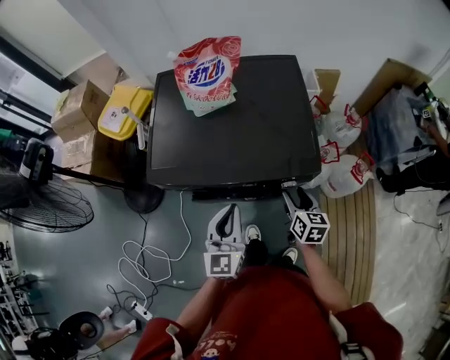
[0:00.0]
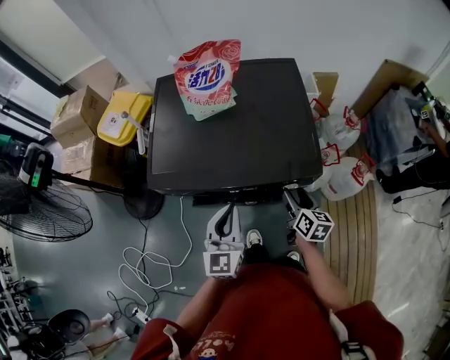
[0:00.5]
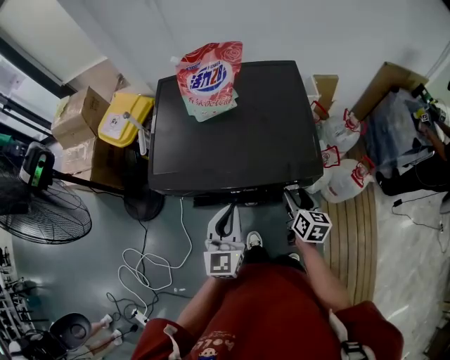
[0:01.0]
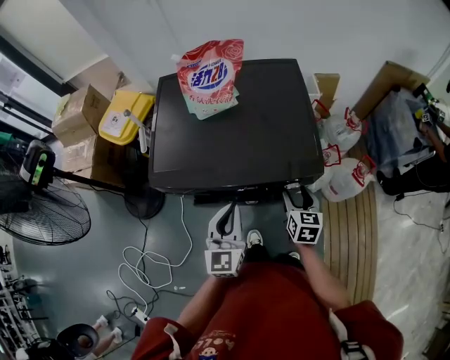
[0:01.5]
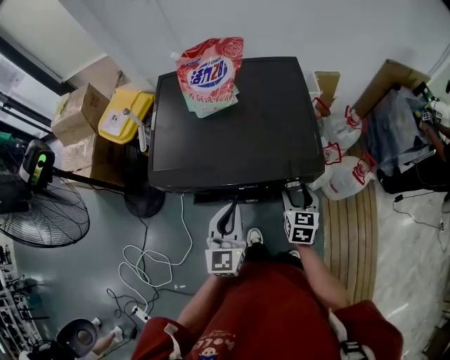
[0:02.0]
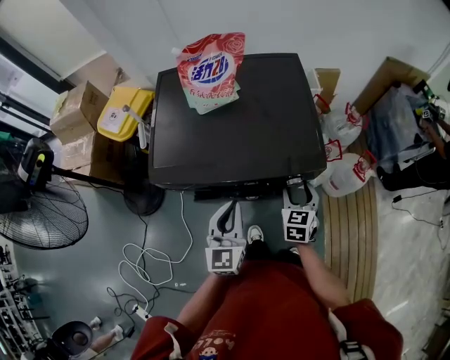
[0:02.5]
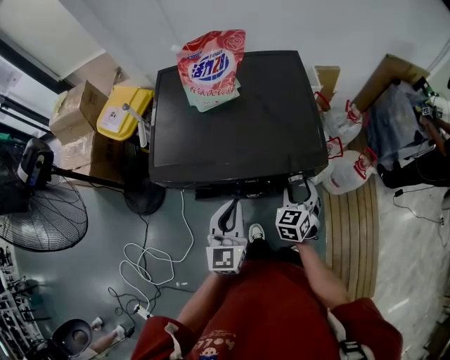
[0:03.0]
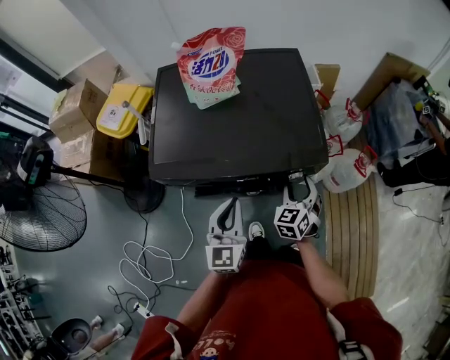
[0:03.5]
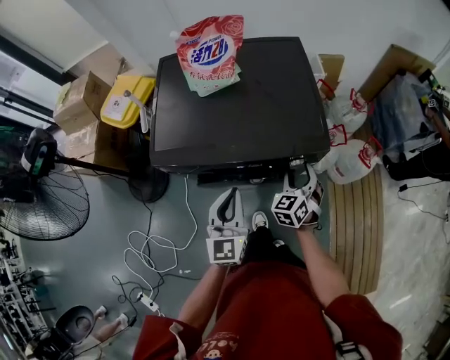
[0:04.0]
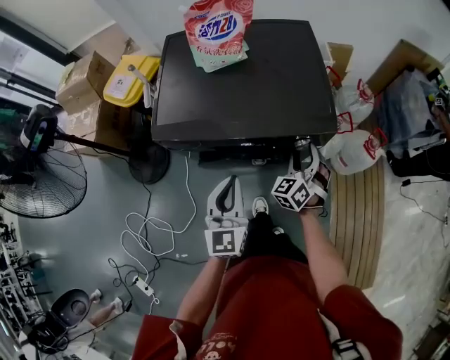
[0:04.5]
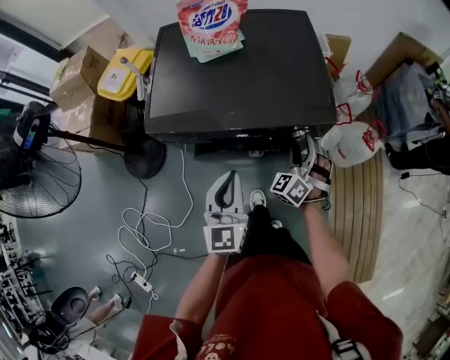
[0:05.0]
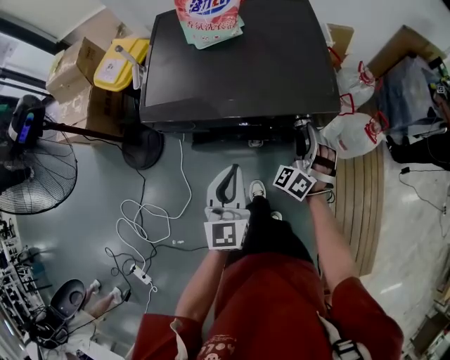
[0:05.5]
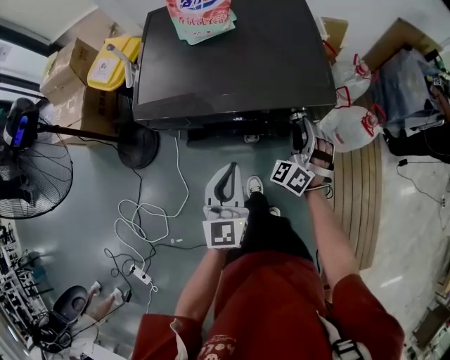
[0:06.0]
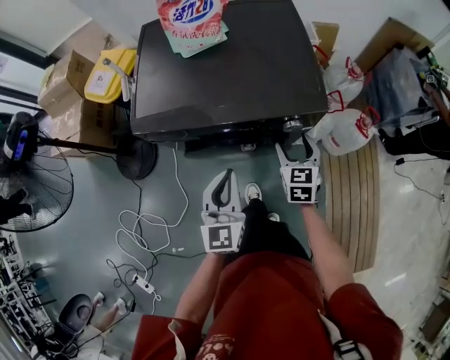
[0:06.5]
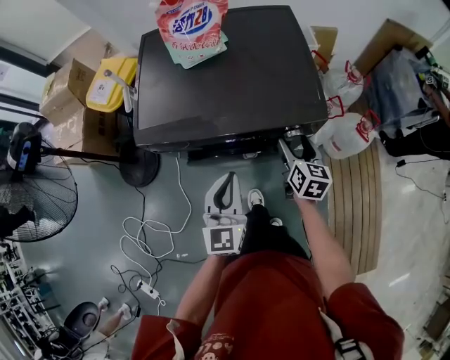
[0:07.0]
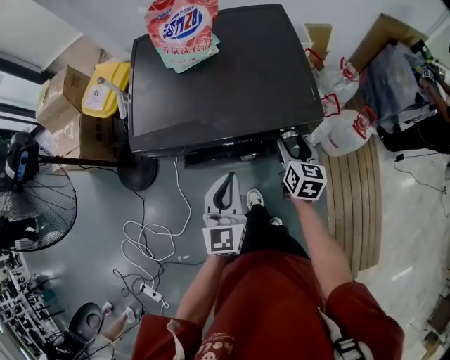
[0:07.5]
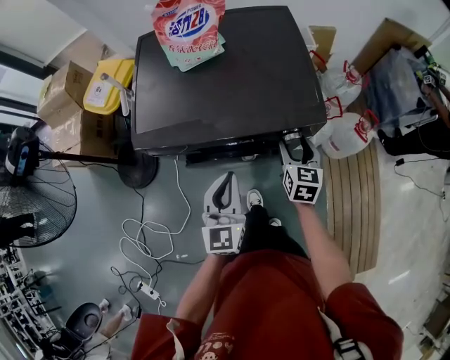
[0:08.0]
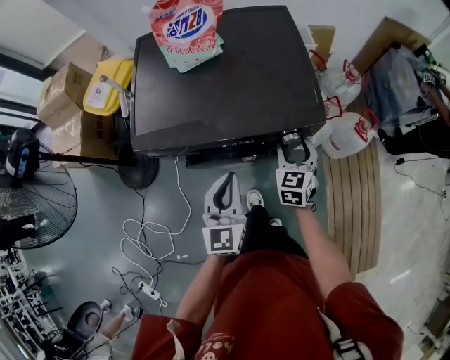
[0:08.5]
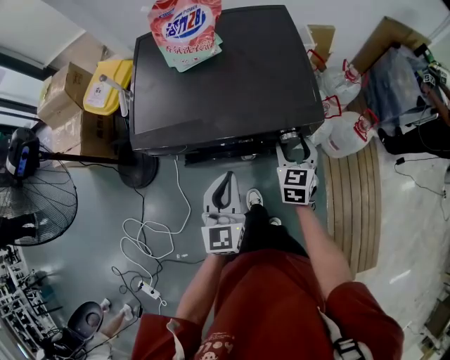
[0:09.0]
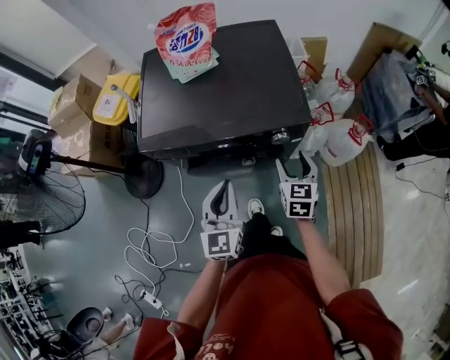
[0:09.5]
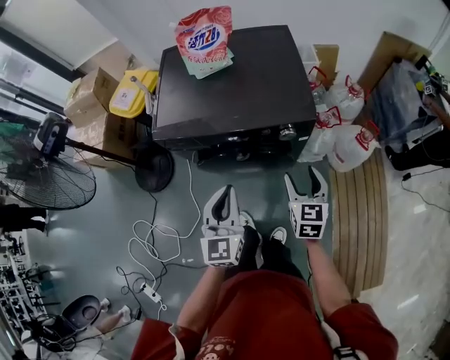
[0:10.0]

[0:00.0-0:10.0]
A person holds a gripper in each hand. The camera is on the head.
0.0 to 2.0 s: The right gripper swivels approximately 20 degrees.
2.0 to 4.0 s: The right gripper swivels about 30 degrees.
4.0 to 6.0 s: The right gripper turns by some 30 degrees, while the left gripper goes about 5 cm backward.
6.0 to 8.0 s: The right gripper rotates around the line of its fingers by some 70 degrees, clockwise from behind.
8.0 to 10.0 s: The grippers both shift backward and upward by approximately 15 cm.

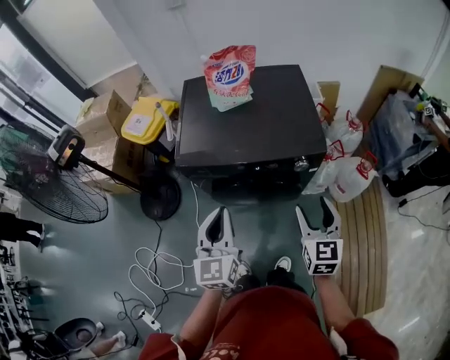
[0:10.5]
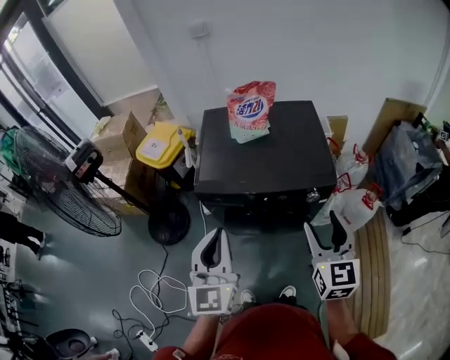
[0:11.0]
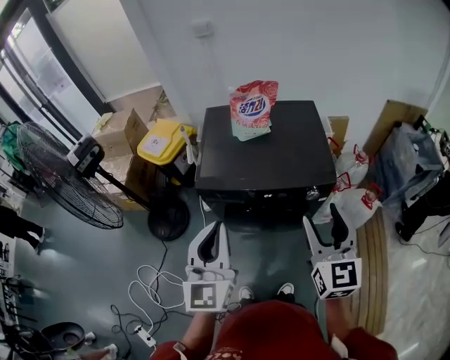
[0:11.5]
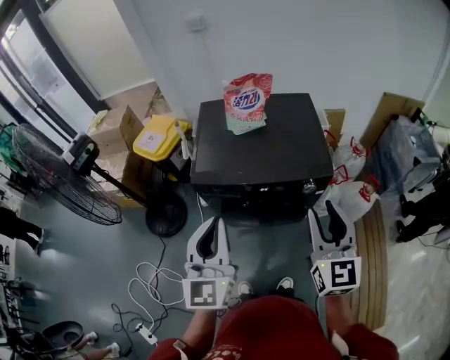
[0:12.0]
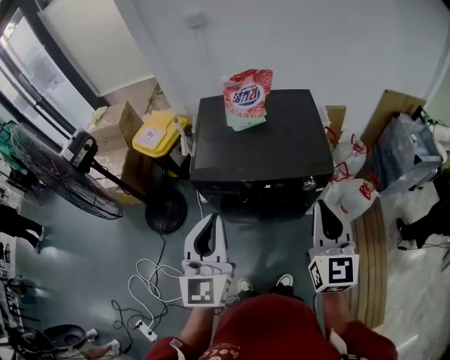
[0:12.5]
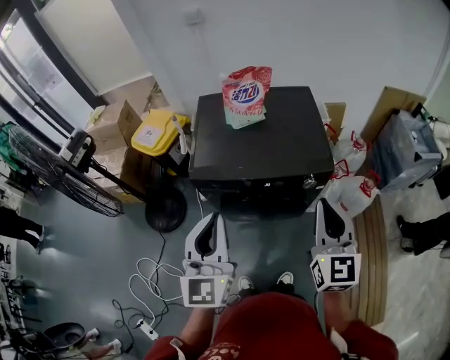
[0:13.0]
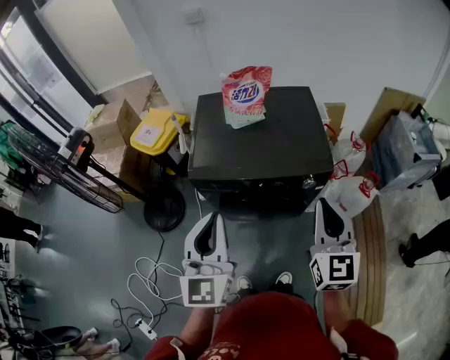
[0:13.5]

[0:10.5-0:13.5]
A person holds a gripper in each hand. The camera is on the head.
10.5 to 12.0 s: Both grippers move upward, roughly 15 cm.
12.0 to 13.5 s: The right gripper closes its fingers.

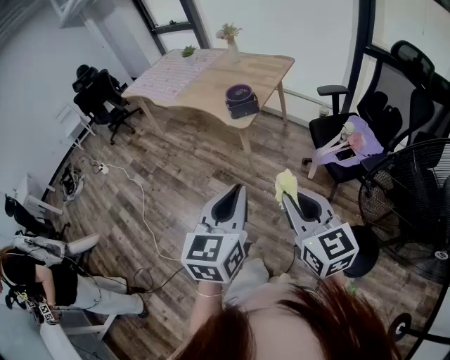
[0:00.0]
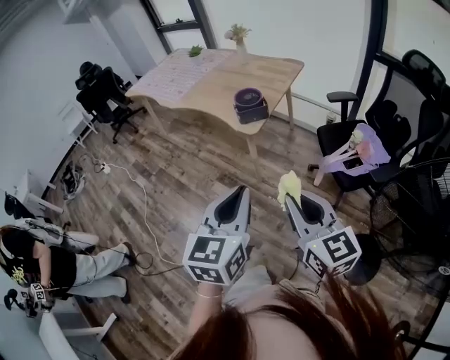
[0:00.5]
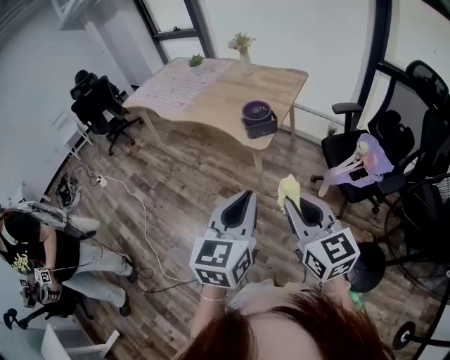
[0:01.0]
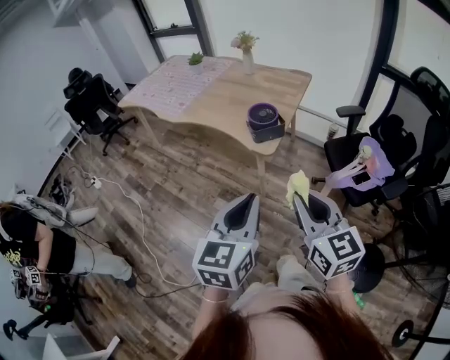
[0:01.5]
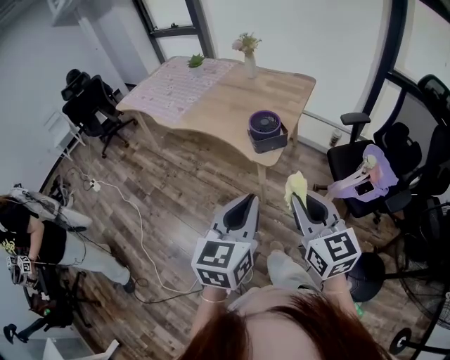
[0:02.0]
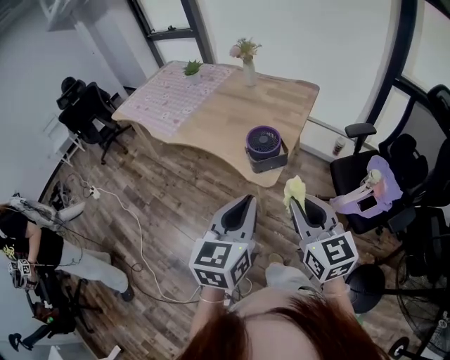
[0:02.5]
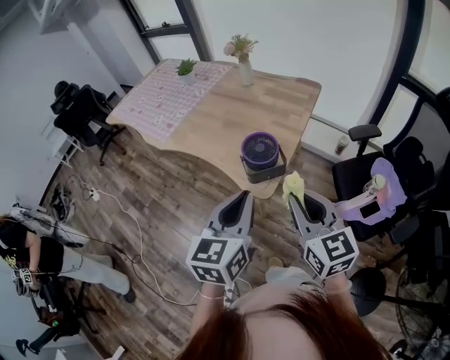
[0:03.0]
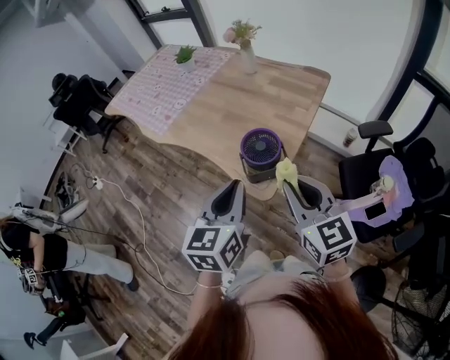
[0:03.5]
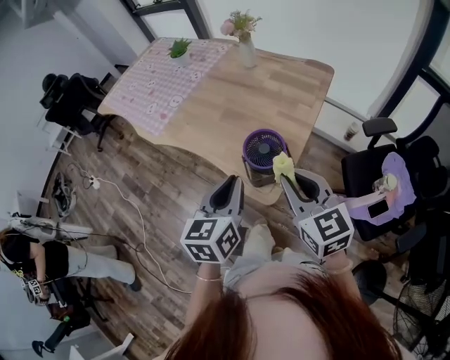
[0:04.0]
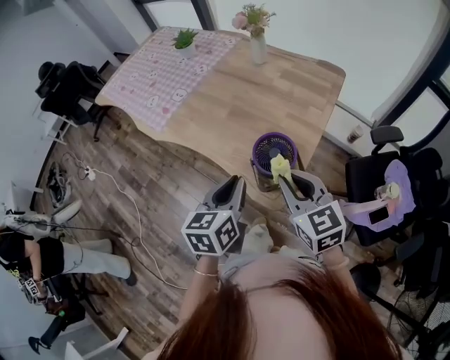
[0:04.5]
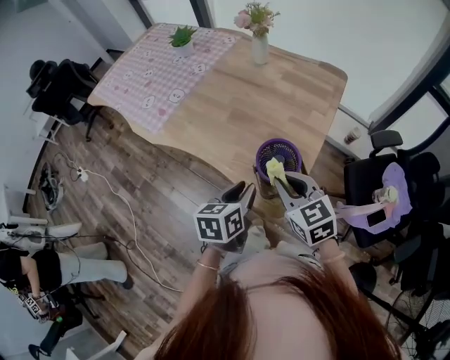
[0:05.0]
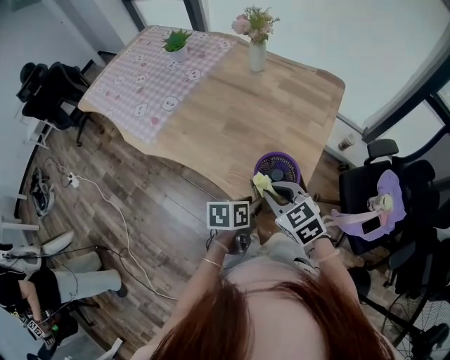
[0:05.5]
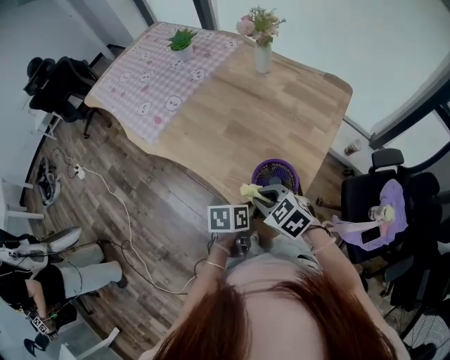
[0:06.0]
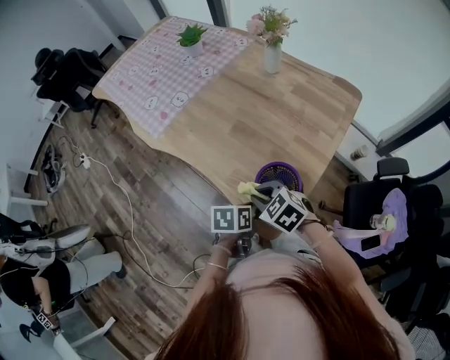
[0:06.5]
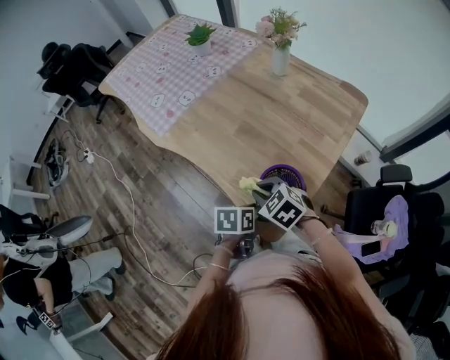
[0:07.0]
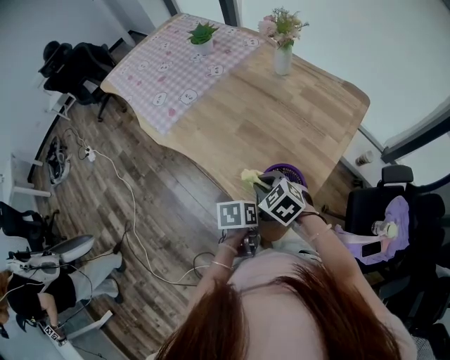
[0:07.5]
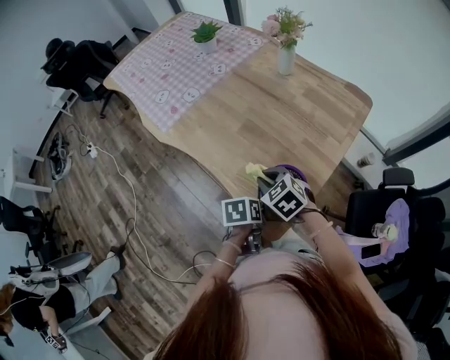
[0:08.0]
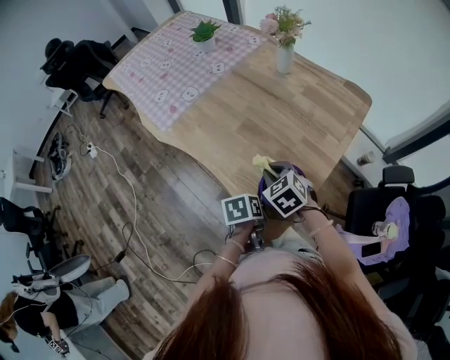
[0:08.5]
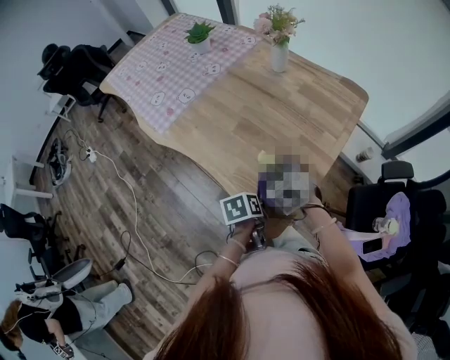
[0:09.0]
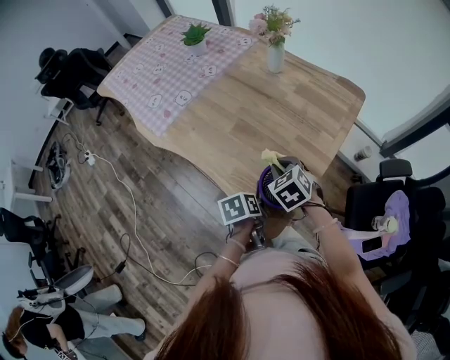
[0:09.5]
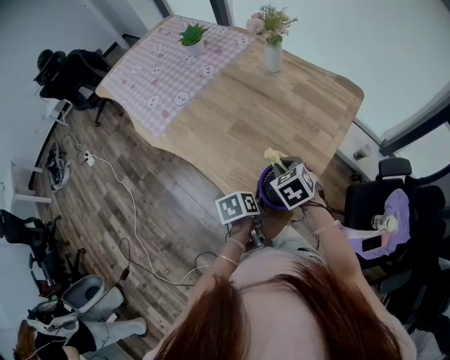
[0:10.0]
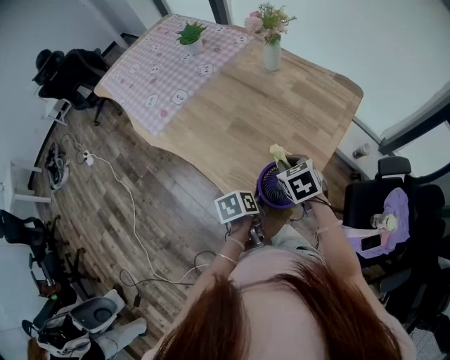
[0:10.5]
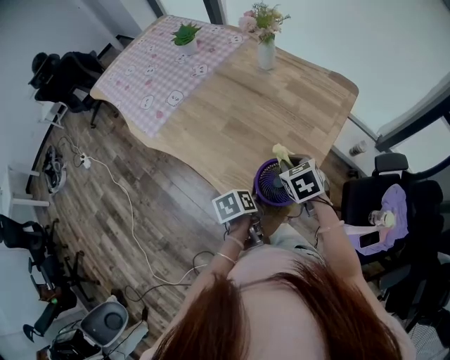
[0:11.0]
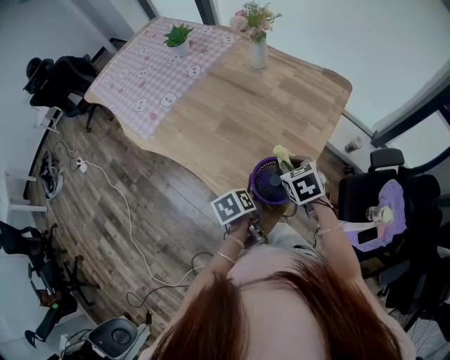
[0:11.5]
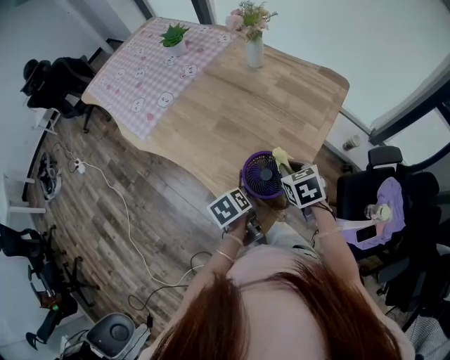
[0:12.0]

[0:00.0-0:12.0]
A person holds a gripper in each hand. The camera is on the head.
0.0 to 2.0 s: Both grippers travel together forward and to the left, approximately 25 cm.
2.0 to 4.0 s: The two grippers go roughly 35 cm forward.
4.0 to 6.0 s: The right gripper travels downward, forward and to the left by some 25 cm, and tilts its fingers about 30 degrees downward. The left gripper is displaced downward and forward by approximately 25 cm, changes its angle by approximately 40 degrees, and opens its fingers.
6.0 to 8.0 s: The right gripper heads forward, covering approximately 10 cm.
8.0 to 10.0 s: The right gripper goes some 10 cm to the right.
10.0 to 12.0 s: The right gripper travels to the right by roughly 5 cm.

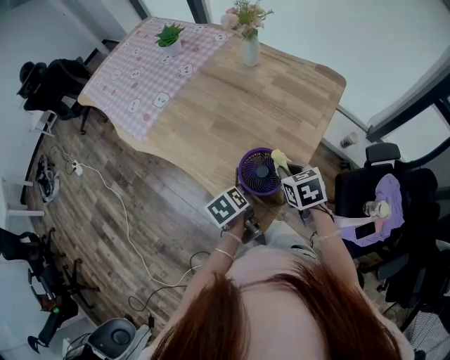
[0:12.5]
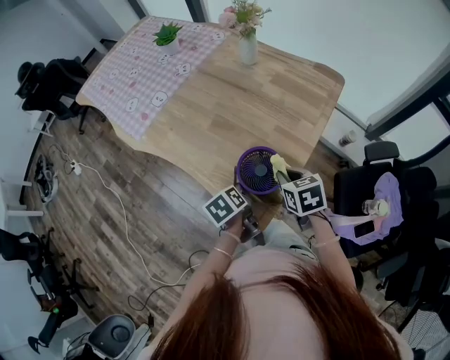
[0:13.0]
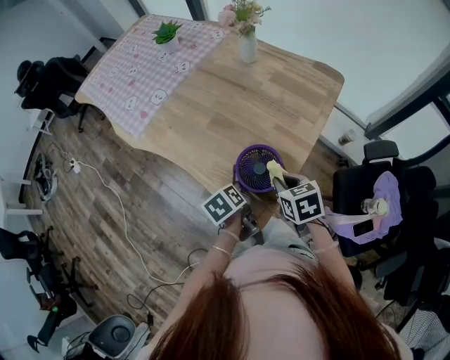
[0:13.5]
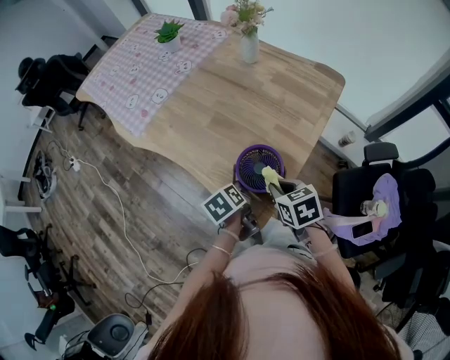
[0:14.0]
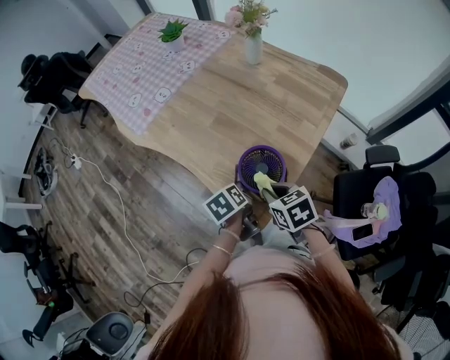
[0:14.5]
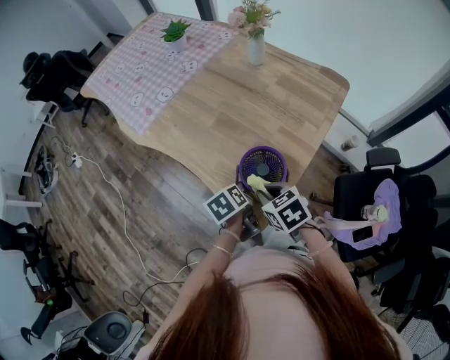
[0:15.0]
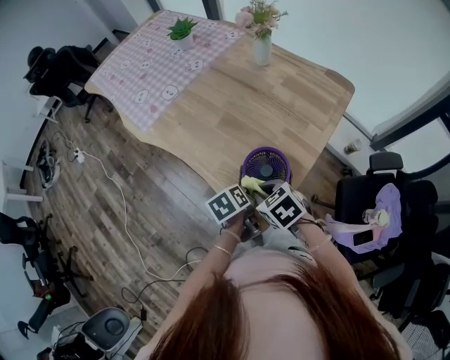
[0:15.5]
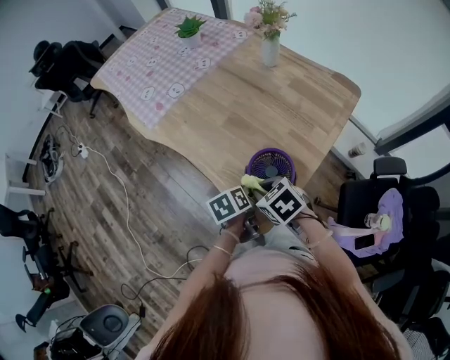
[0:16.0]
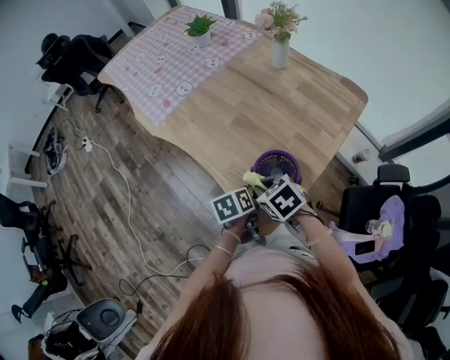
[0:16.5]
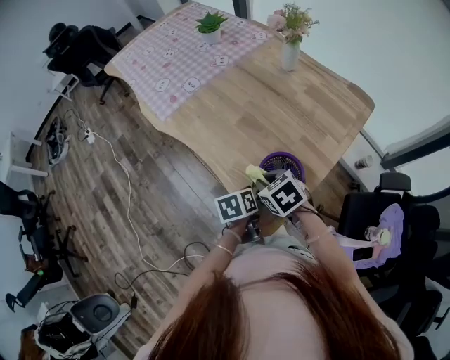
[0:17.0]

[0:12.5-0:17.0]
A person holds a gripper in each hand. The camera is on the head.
12.5 to 14.5 s: The right gripper is displaced to the left and backward by about 10 cm.
14.5 to 17.0 s: The right gripper is displaced forward and to the left by approximately 10 cm, and turns by some 20 degrees.
